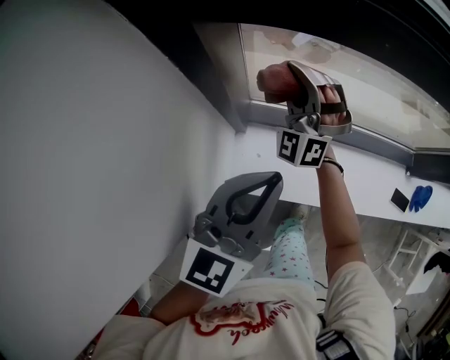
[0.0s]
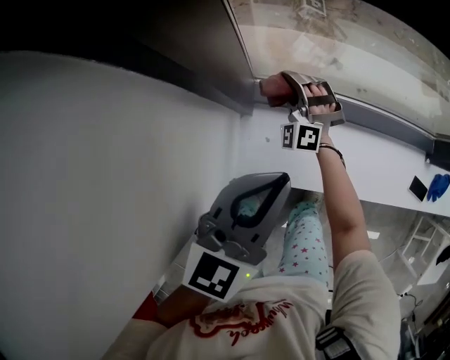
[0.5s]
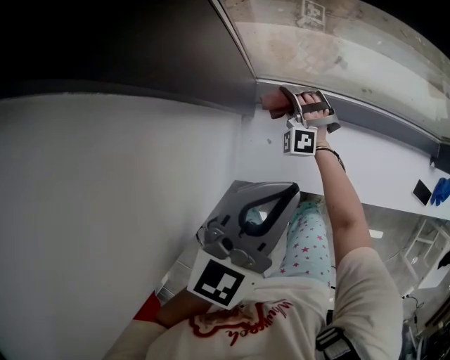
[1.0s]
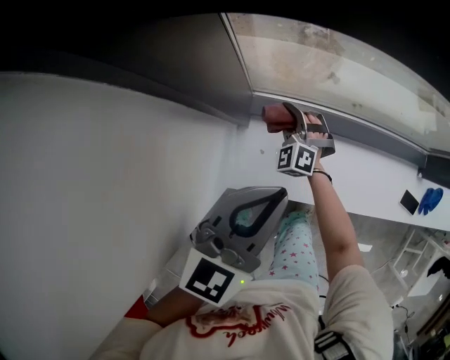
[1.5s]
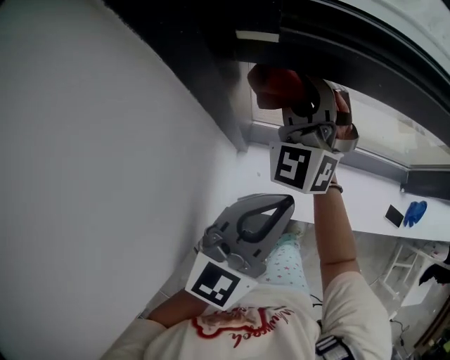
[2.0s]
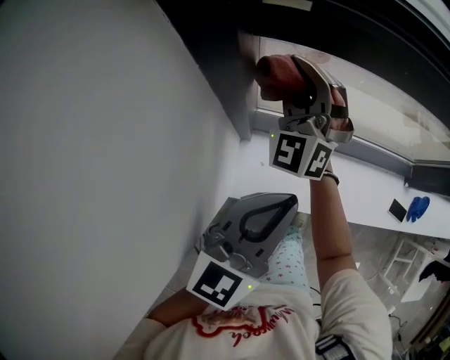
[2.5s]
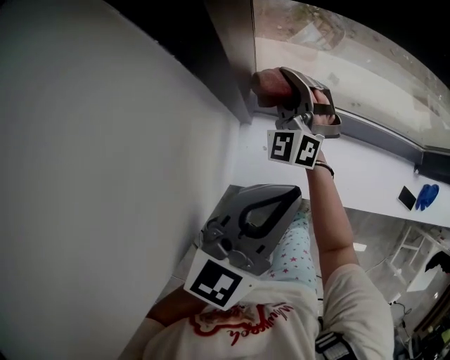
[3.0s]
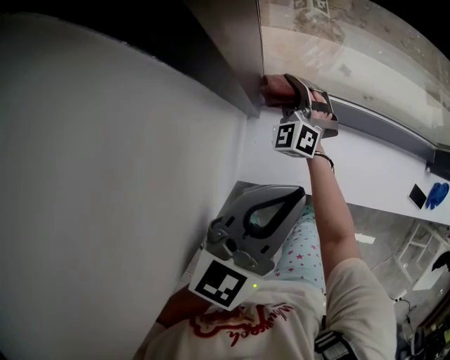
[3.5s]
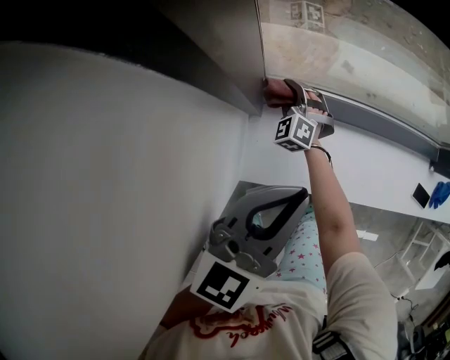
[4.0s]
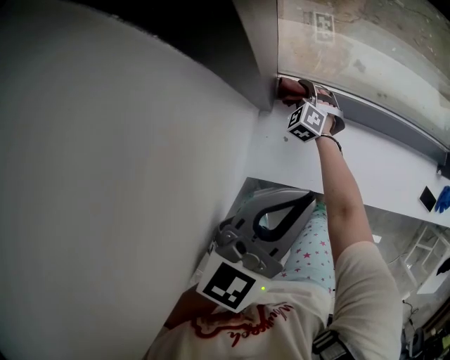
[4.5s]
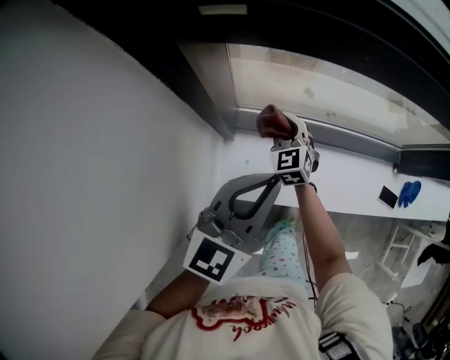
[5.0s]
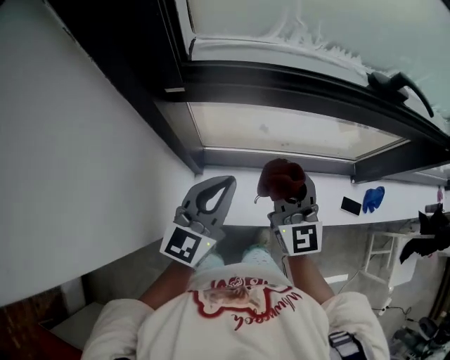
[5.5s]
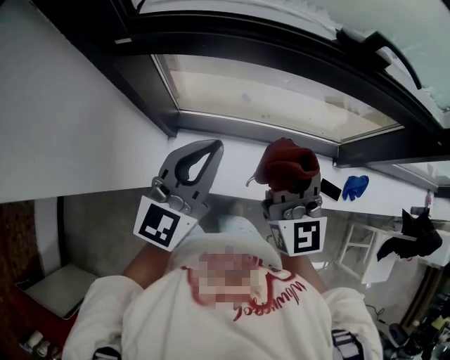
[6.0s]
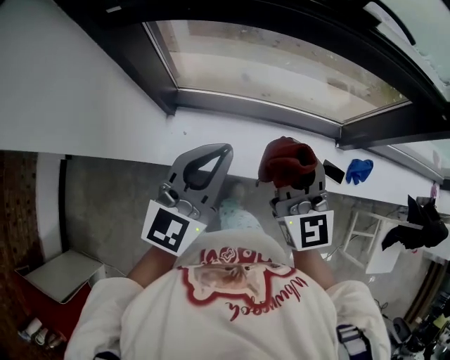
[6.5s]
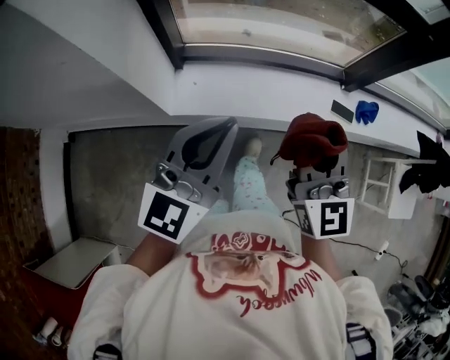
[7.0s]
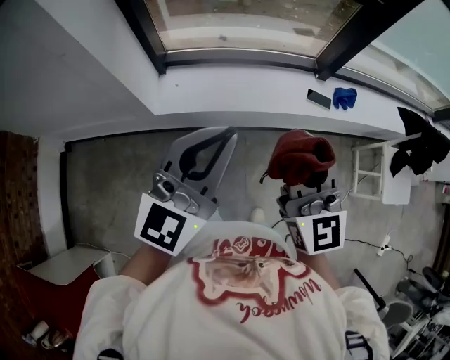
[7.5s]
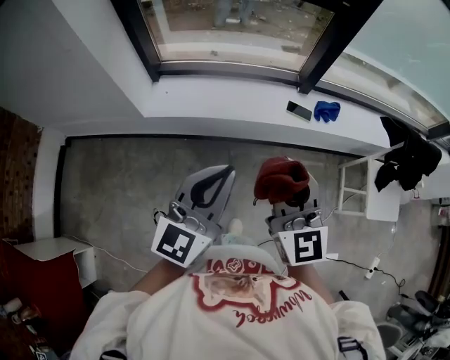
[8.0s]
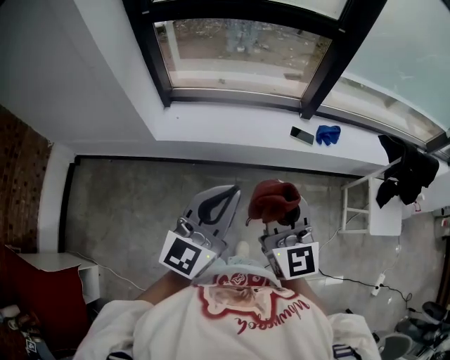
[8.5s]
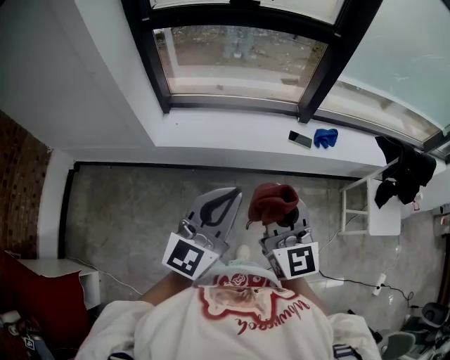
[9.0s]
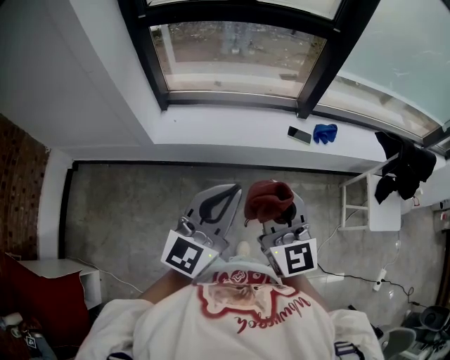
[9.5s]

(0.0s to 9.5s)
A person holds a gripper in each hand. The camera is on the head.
0.0s - 2.0s: The left gripper travels downward and back again, roughly 10 cm each way; the right gripper reaches some 30 cm downward, then returns.
2.0s - 4.0s: The right gripper travels downward by approximately 40 cm, and tips its fingers downward by about 30 degrees. The left gripper shifts approximately 10 cm downward.
4.0s - 5.5s: The left gripper shifts approximately 15 cm upward. Meanwhile the right gripper goes approximately 50 cm upward and to the right, and points its fingers about 40 degrees further upward.
5.5s - 7.5s: Both grippers are carried backward and to the right, about 50 cm.
7.5s - 9.5s: The left gripper is displaced to the right and backward by roughly 20 cm. The right gripper is displaced backward and to the right by roughly 15 cm.

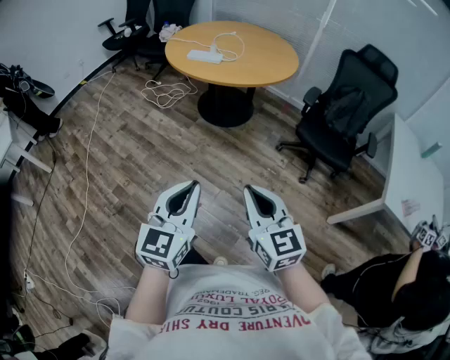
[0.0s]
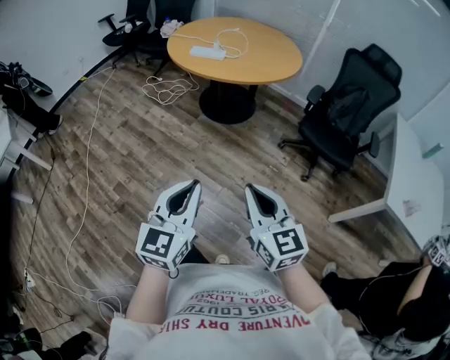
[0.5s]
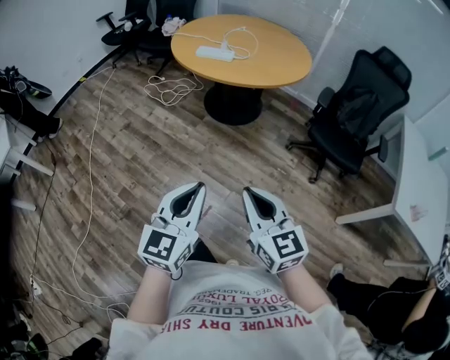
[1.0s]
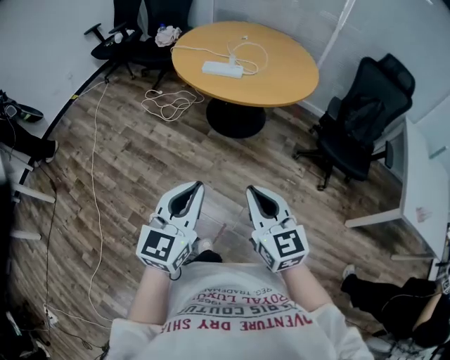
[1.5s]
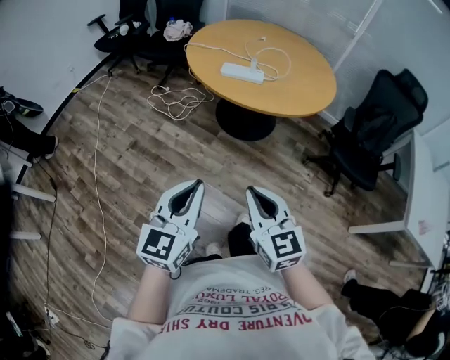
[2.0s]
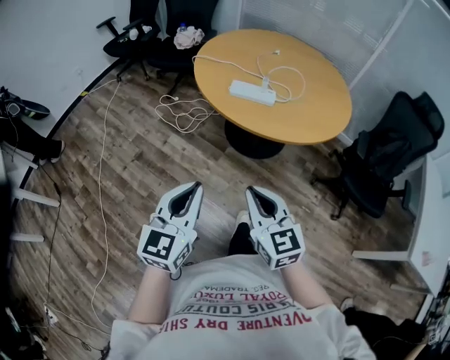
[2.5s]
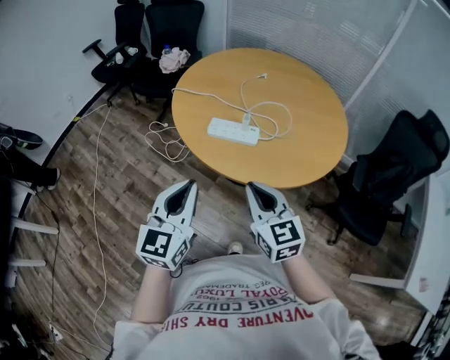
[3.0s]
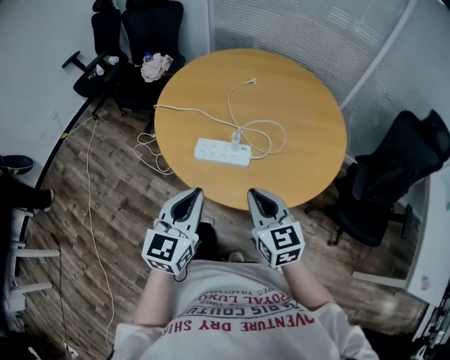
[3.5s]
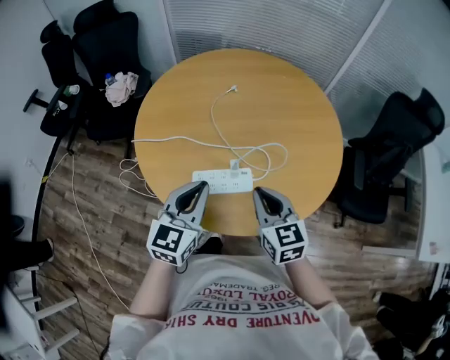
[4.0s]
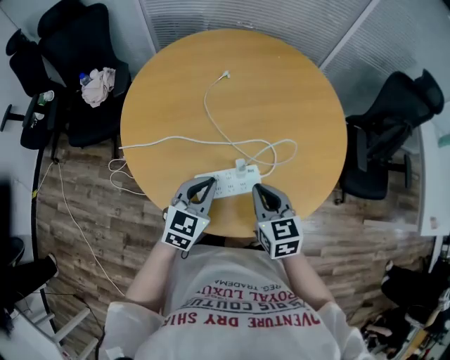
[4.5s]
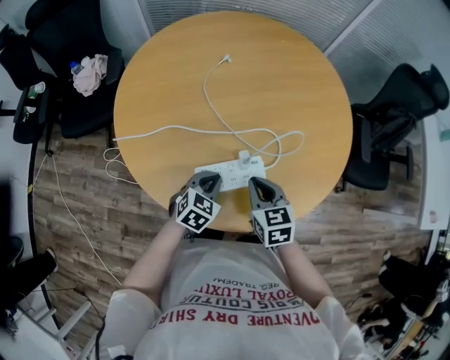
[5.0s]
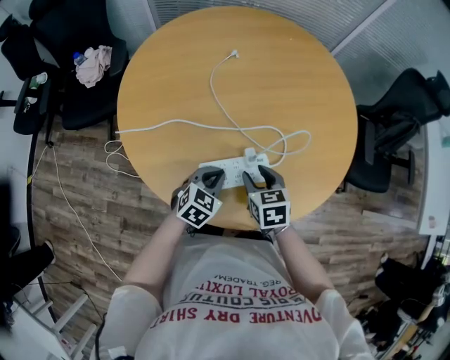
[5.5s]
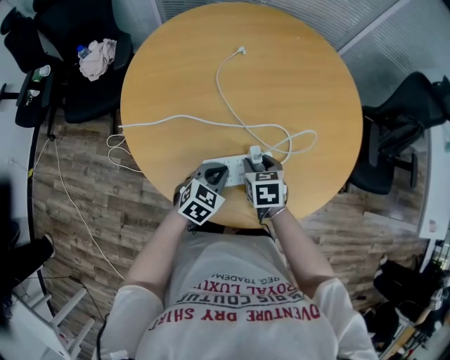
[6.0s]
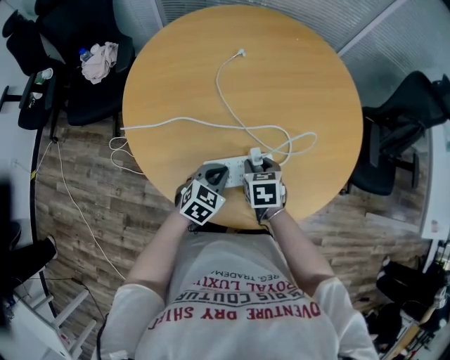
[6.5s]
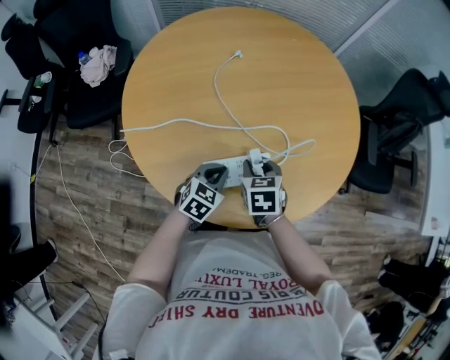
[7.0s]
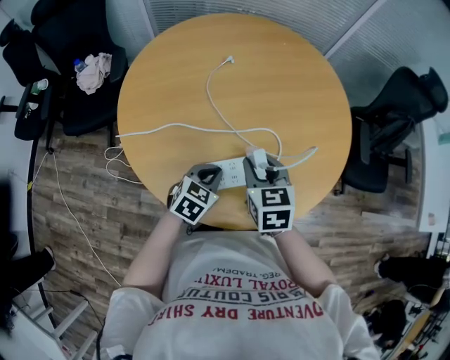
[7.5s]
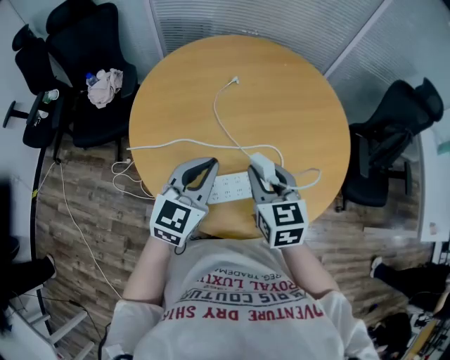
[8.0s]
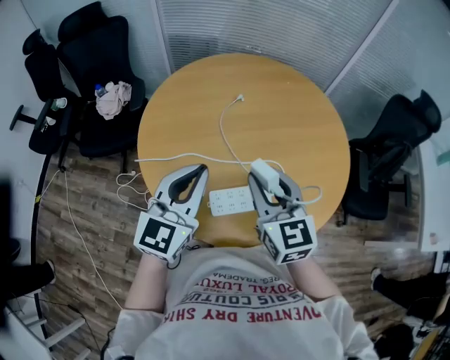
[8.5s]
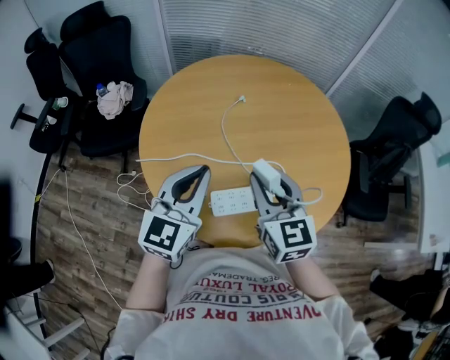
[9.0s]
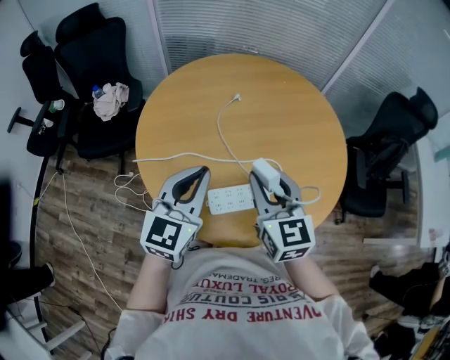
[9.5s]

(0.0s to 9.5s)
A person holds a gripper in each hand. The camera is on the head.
0.0s - 2.0s: The left gripper travels forward and to the left by some 40 cm. Meanwhile the right gripper travels to the left and forward by approximately 35 cm.
2.0s - 4.0s: The two grippers travel together, forward, approximately 60 cm. The right gripper swivels roughly 20 degrees.
4.0s - 5.5s: Both grippers travel together downward, approximately 20 cm. The left gripper swivels approximately 40 degrees. Meanwhile the right gripper rotates roughly 30 degrees, and opens its fingers.
5.5s - 7.5s: The right gripper is displaced upward by about 10 cm.
7.5s - 9.5s: The right gripper travels upward by approximately 15 cm, and turns by some 30 degrees. The left gripper goes approximately 25 cm upward, and tilts its fingers some 40 degrees upward.

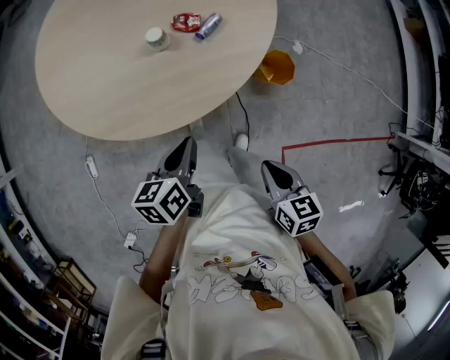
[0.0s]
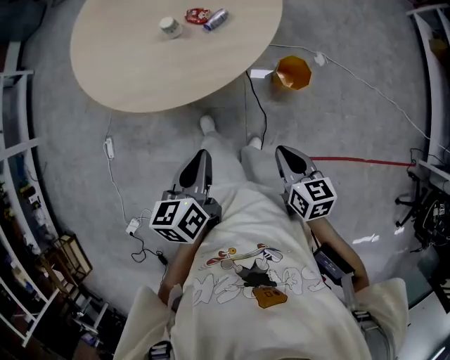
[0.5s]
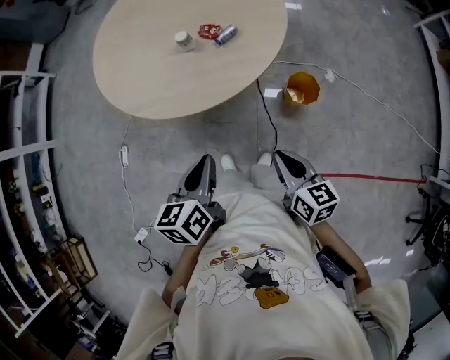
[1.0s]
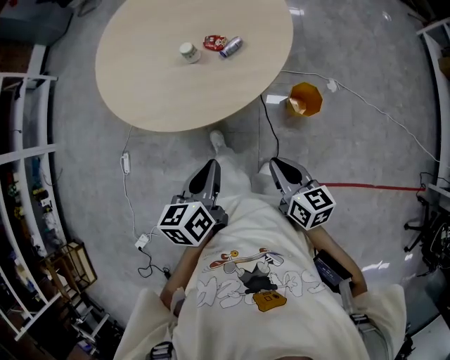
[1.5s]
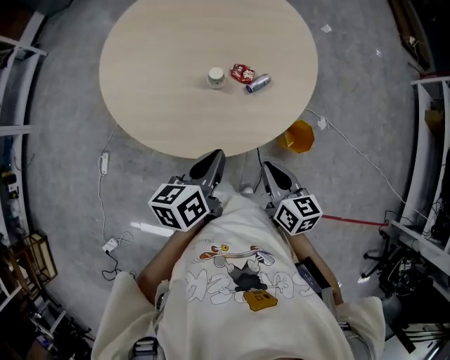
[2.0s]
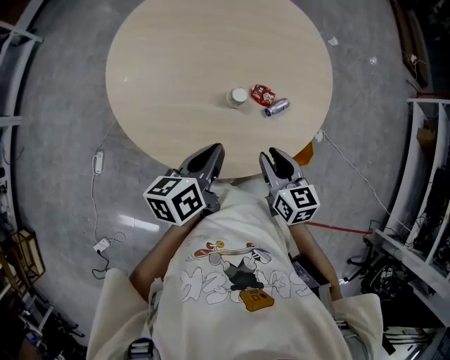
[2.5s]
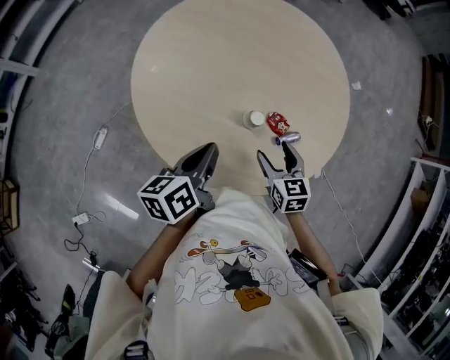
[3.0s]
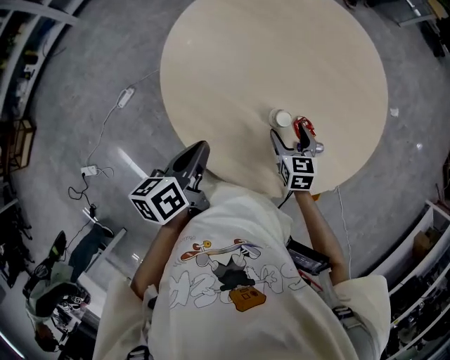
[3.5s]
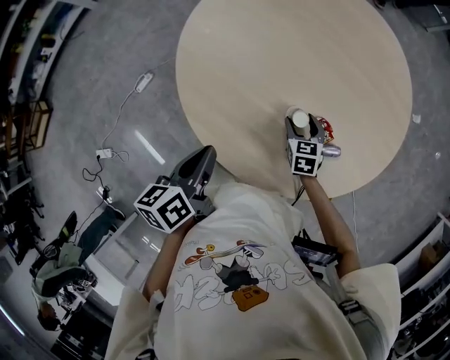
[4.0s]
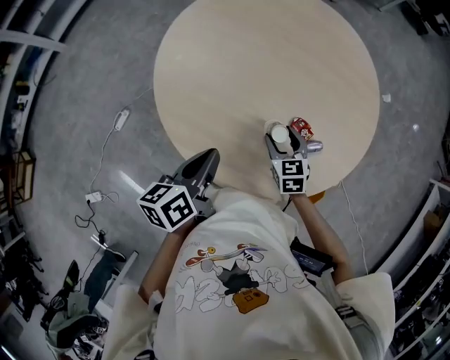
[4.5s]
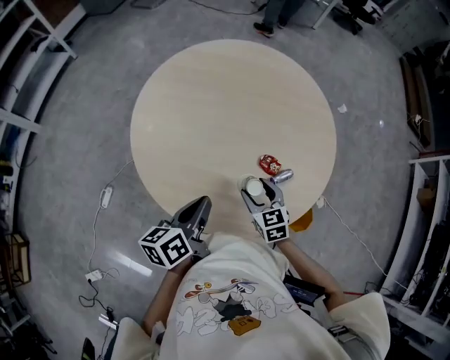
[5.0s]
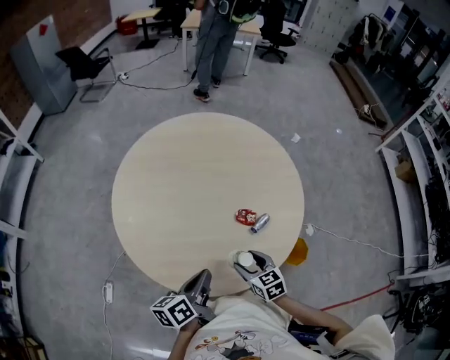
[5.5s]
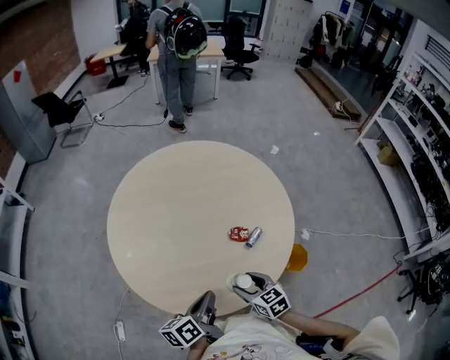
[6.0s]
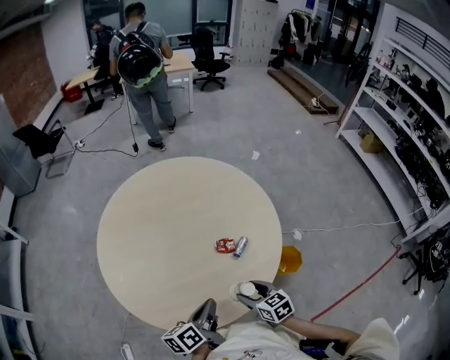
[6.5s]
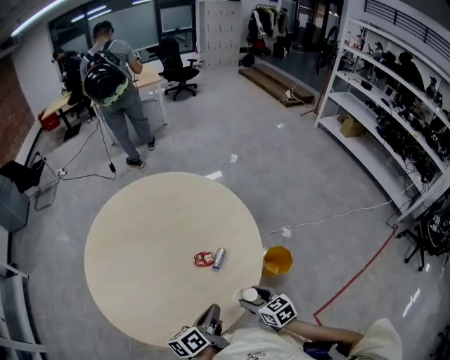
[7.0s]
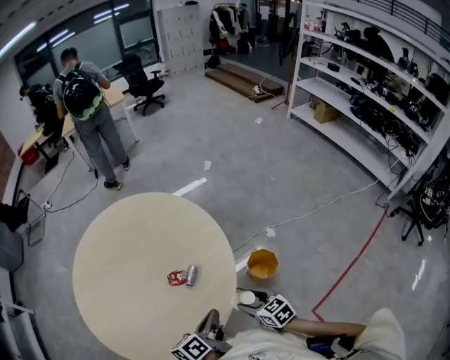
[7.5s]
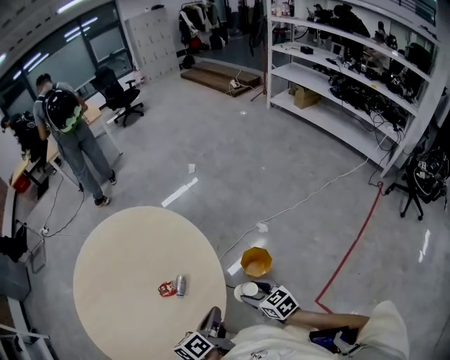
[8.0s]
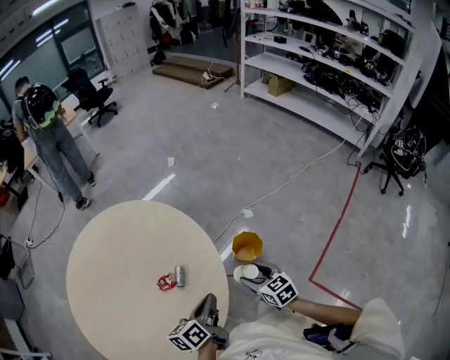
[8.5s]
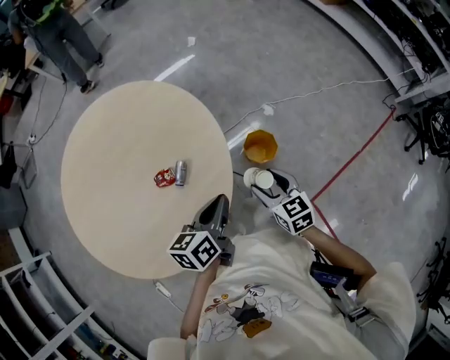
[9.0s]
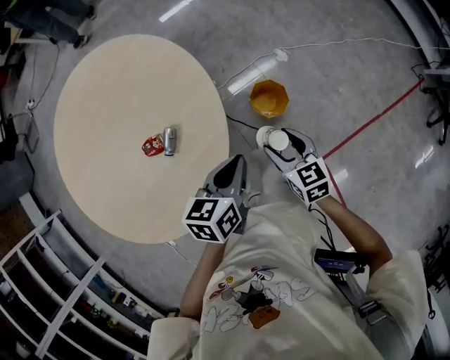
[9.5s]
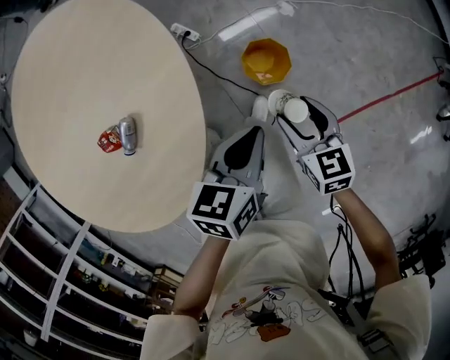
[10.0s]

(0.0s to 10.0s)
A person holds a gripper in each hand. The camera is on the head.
0.0s - 2.0s: The right gripper shifts about 15 cm forward. The left gripper is displaced upward by some 10 cm, and travels backward and back again, roughly 15 cm each way.
2.0s - 4.0s: The right gripper ends up some 40 cm from where it was, rotates some 40 degrees, and opens up. Meanwhile the left gripper shifts by some 20 cm, and swivels roughly 40 degrees.
4.0s - 6.0s: The left gripper changes its angle by some 50 degrees, while the right gripper changes place by some 25 cm, and changes its angle by roughly 30 degrees.
6.0s - 8.0s: The two grippers go roughly 35 cm to the right. The right gripper changes its angle by roughly 30 degrees. The left gripper rotates approximately 20 degrees.
8.0s - 10.0s: The left gripper travels downward, to the right and forward by about 25 cm, and turns by roughly 30 degrees; the right gripper goes about 25 cm downward, forward and to the right.
